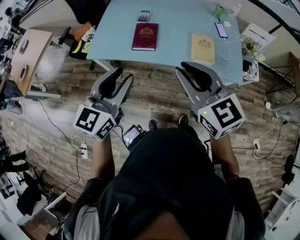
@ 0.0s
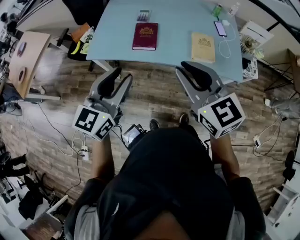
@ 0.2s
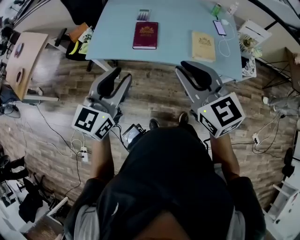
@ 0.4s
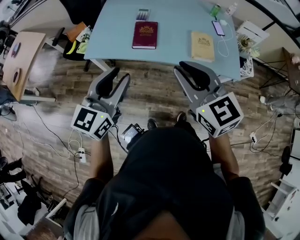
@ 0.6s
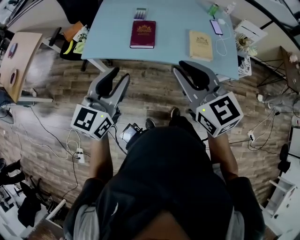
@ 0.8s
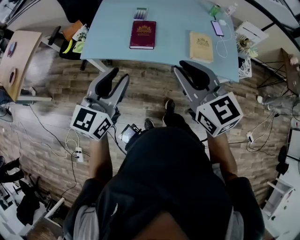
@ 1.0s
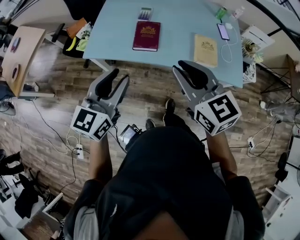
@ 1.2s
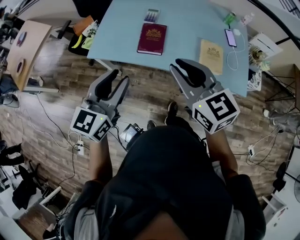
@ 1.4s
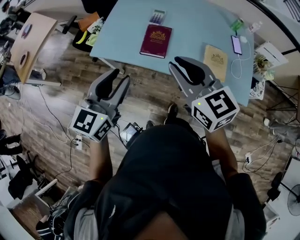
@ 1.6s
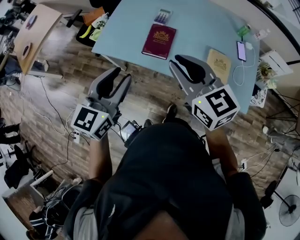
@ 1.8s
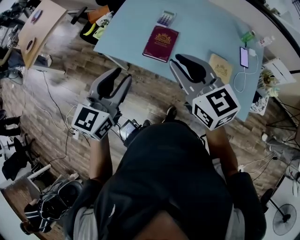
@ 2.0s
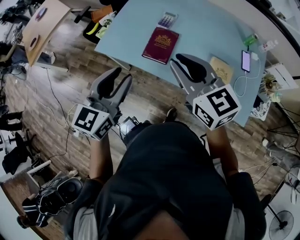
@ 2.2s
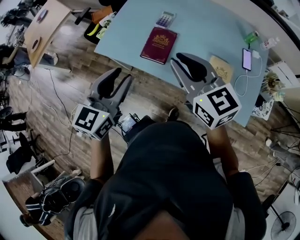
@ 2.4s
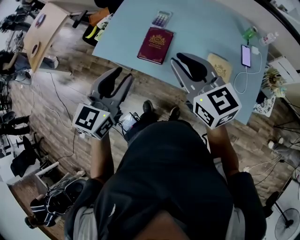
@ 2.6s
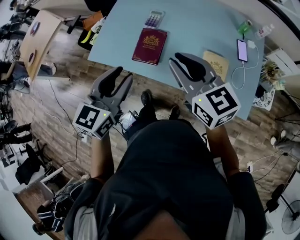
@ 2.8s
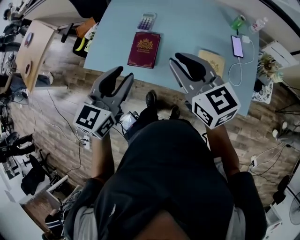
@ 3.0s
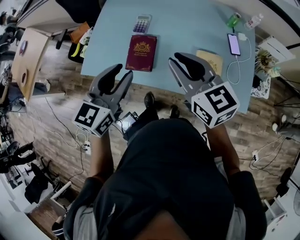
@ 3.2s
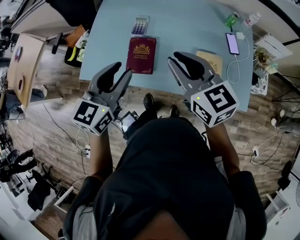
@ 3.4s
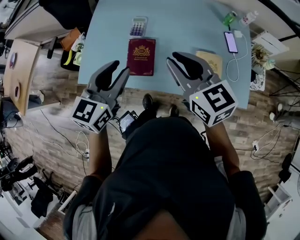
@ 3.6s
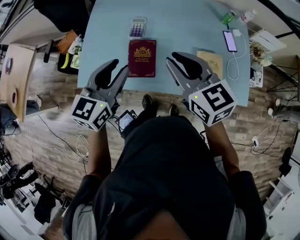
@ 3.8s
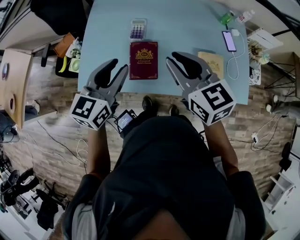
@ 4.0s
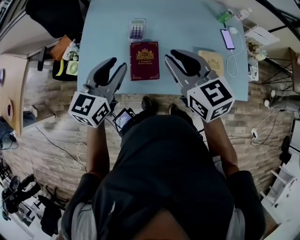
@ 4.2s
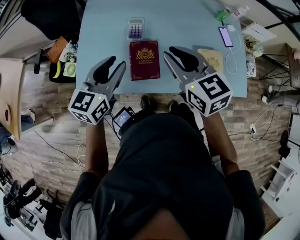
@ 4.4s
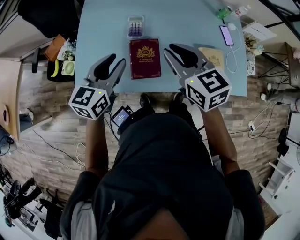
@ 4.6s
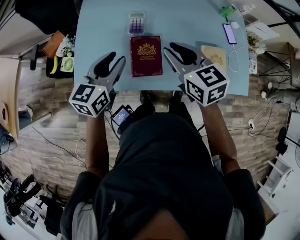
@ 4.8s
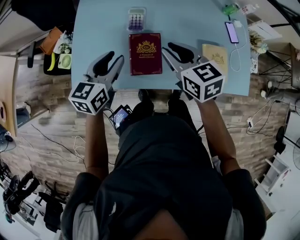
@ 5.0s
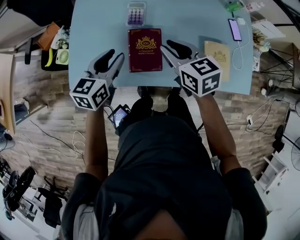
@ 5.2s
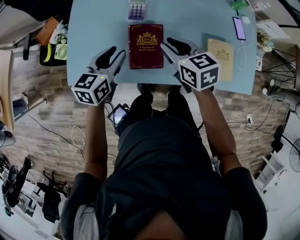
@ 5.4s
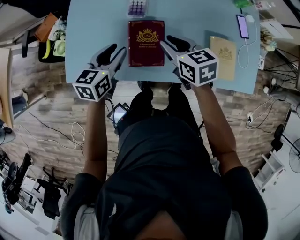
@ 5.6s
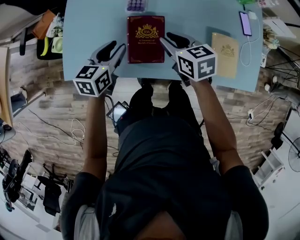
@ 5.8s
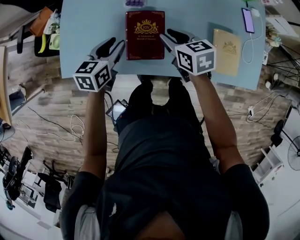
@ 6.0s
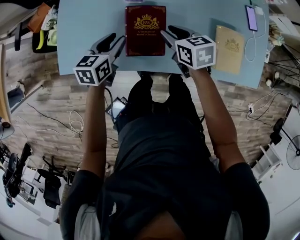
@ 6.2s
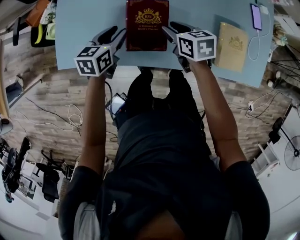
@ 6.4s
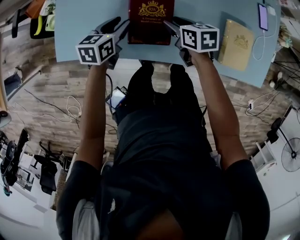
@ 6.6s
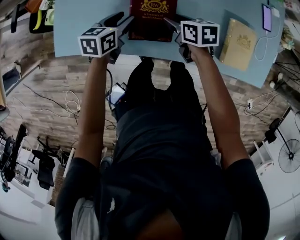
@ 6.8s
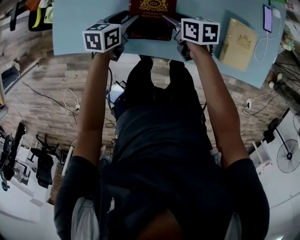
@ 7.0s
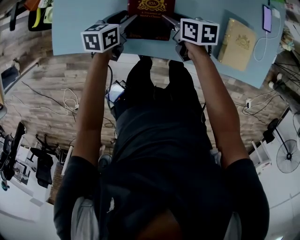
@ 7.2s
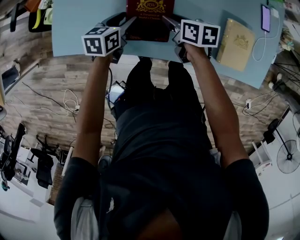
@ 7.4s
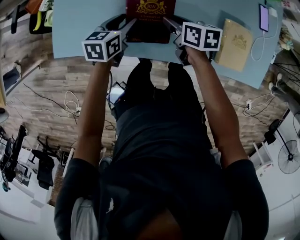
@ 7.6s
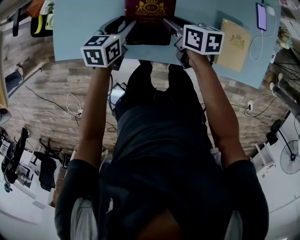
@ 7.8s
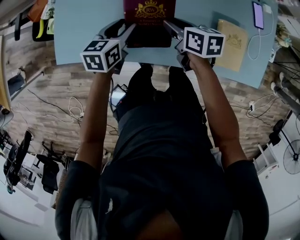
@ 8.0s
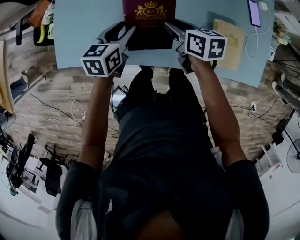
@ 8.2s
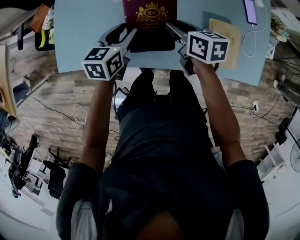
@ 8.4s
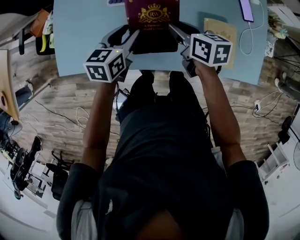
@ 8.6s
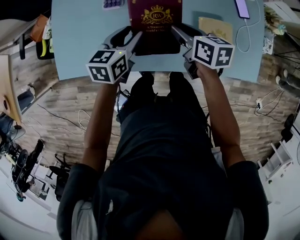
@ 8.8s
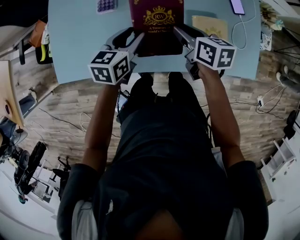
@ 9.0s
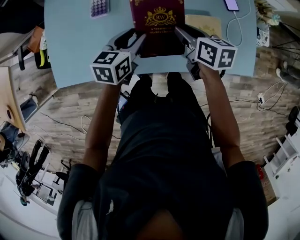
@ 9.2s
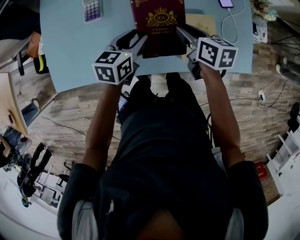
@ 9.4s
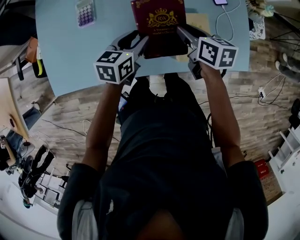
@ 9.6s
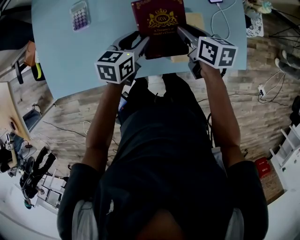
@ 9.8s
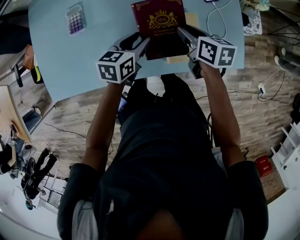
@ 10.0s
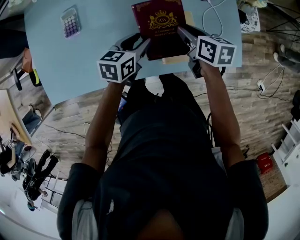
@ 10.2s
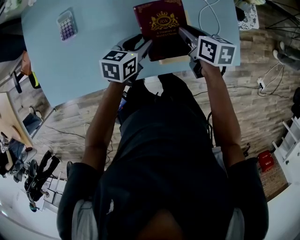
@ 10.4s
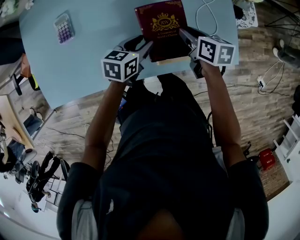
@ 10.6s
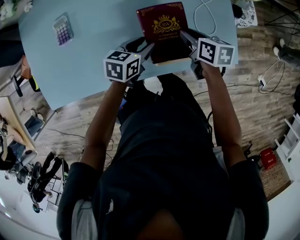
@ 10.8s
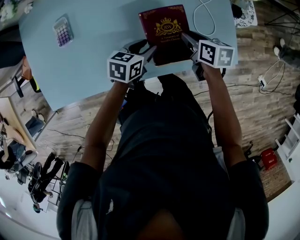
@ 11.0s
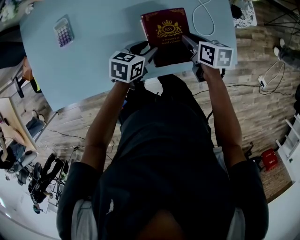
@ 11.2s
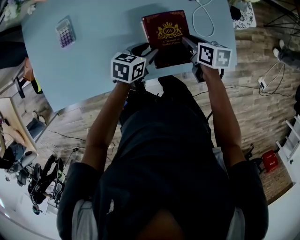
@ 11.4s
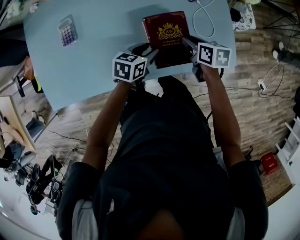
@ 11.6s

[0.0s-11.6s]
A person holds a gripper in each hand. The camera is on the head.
0.0s to 1.4s: The two grippers go roughly 10 cm forward and to the left.
1.4s to 2.8s: Both grippers move to the right and forward, approximately 15 cm.
2.8s to 4.4s: The grippers both shift forward and to the left by about 20 cm. The left gripper changes its angle by some 20 degrees. The right gripper changes its angle by some 20 degrees.
4.4s to 5.8s: The two grippers go roughly 20 cm downward. The left gripper turns by some 20 degrees. The right gripper turns by about 30 degrees.
5.8s to 7.2s: Both grippers travel together downward, some 15 cm. The right gripper turns by roughly 20 degrees.
7.2s to 8.8s: The right gripper heads to the right and upward, covering about 20 cm, while the left gripper goes roughly 20 cm upward and to the right.
8.8s to 10.2s: Both grippers move to the right, roughly 20 cm.
10.2s to 11.6s: The two grippers go approximately 5 cm to the right.

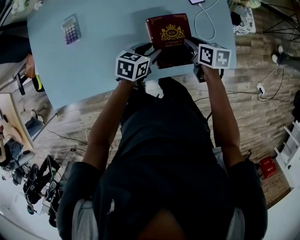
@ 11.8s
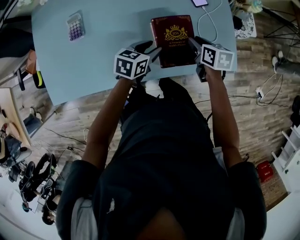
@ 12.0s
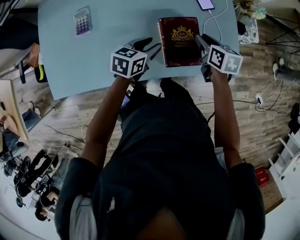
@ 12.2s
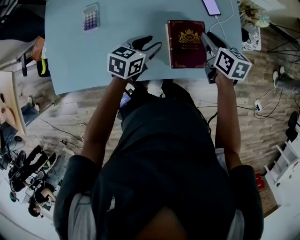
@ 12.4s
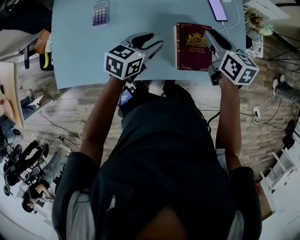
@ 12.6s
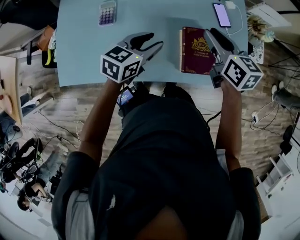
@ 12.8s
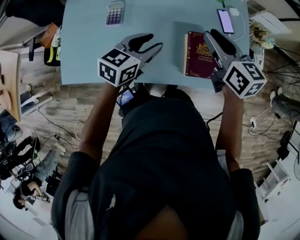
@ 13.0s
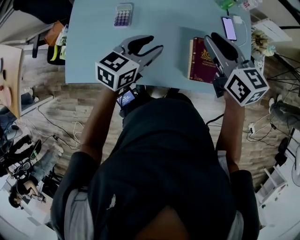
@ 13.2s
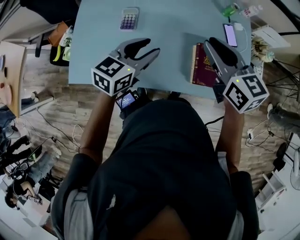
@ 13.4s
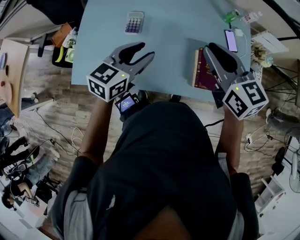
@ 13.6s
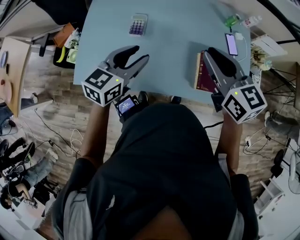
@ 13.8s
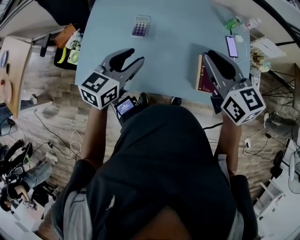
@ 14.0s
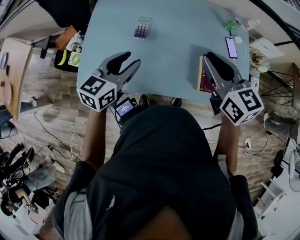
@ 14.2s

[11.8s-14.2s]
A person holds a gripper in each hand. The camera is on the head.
11.8s to 13.0s: The grippers both shift upward and to the left by roughly 25 cm. The right gripper swivels about 40 degrees. The left gripper turns by approximately 20 degrees.
13.0s to 14.2s: The left gripper is displaced to the left by roughly 20 cm. The right gripper heads to the left, upward and backward, covering about 20 cm.

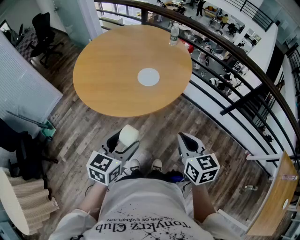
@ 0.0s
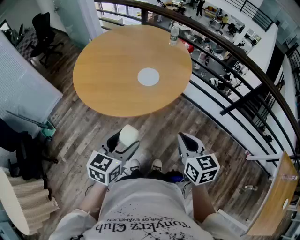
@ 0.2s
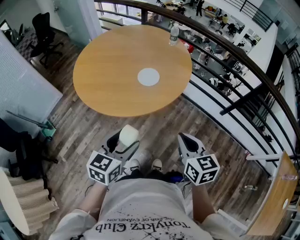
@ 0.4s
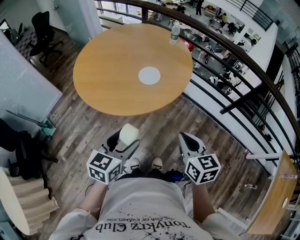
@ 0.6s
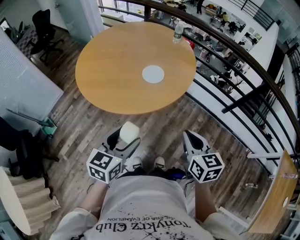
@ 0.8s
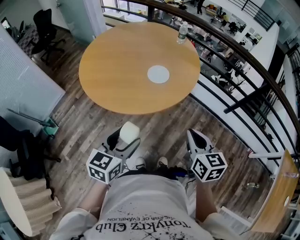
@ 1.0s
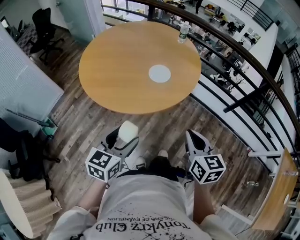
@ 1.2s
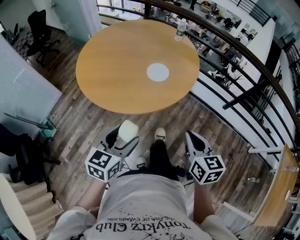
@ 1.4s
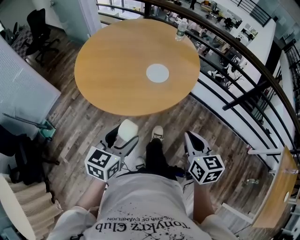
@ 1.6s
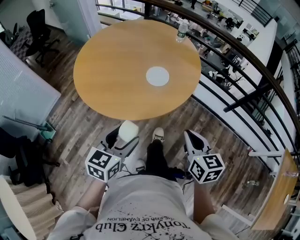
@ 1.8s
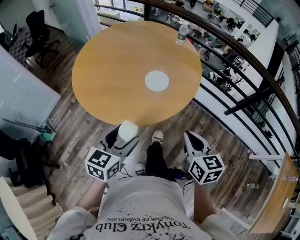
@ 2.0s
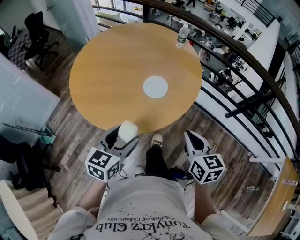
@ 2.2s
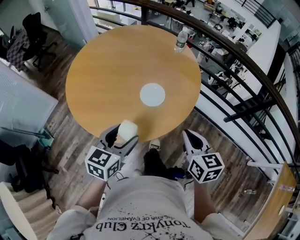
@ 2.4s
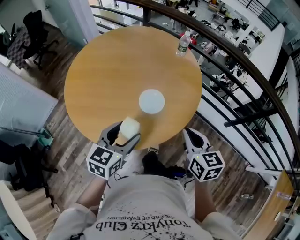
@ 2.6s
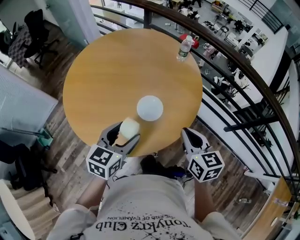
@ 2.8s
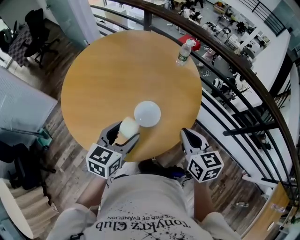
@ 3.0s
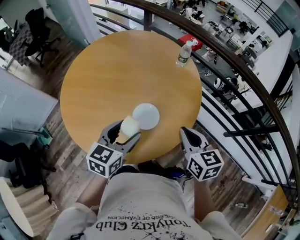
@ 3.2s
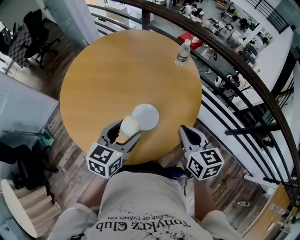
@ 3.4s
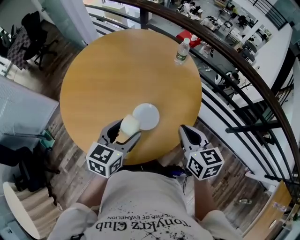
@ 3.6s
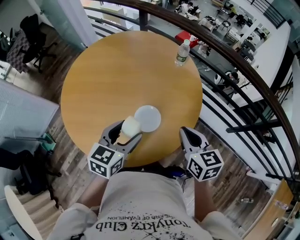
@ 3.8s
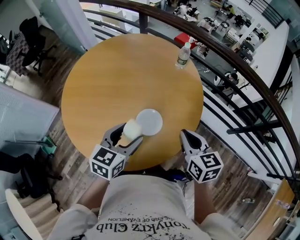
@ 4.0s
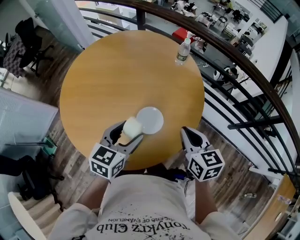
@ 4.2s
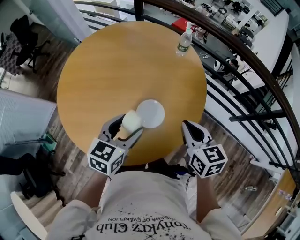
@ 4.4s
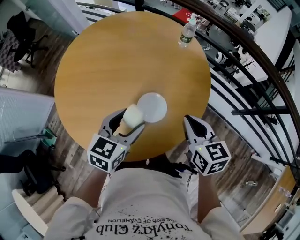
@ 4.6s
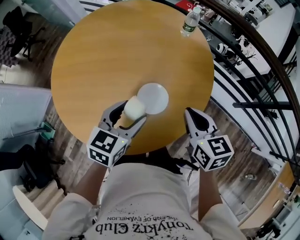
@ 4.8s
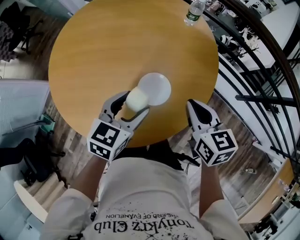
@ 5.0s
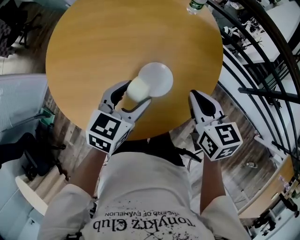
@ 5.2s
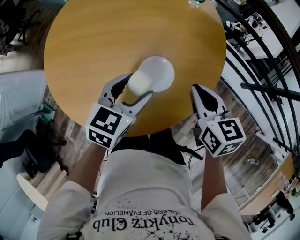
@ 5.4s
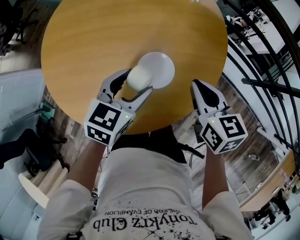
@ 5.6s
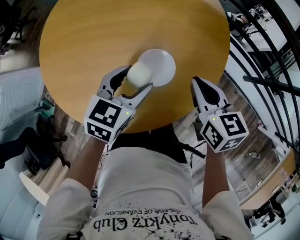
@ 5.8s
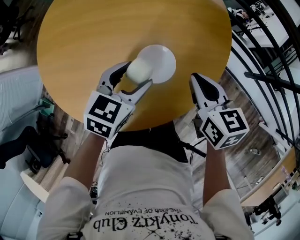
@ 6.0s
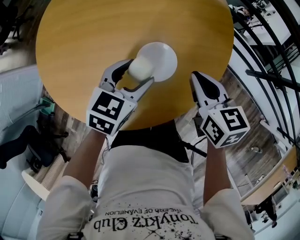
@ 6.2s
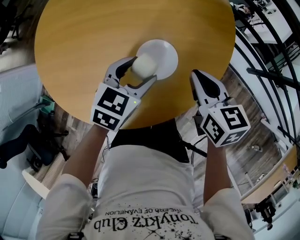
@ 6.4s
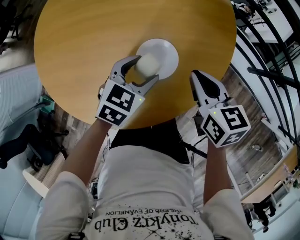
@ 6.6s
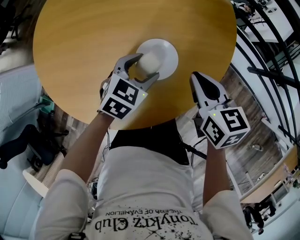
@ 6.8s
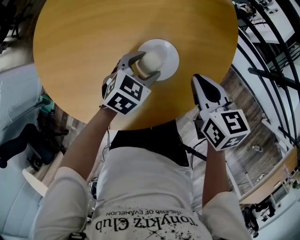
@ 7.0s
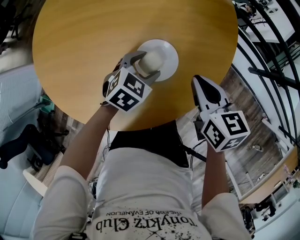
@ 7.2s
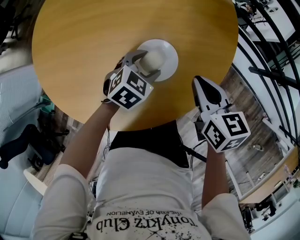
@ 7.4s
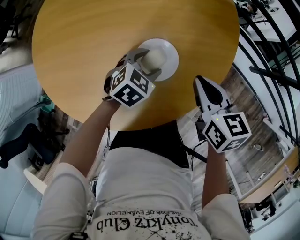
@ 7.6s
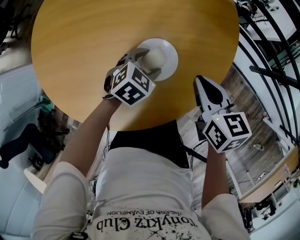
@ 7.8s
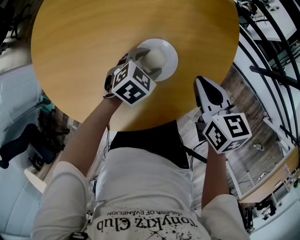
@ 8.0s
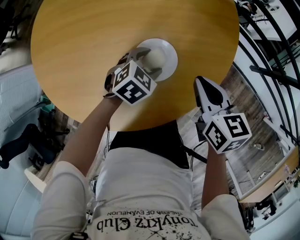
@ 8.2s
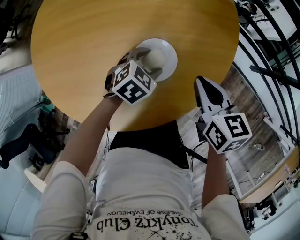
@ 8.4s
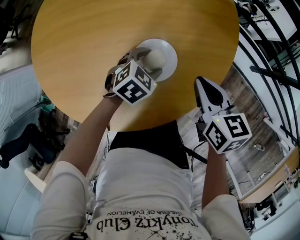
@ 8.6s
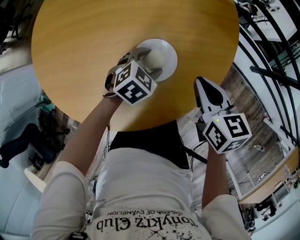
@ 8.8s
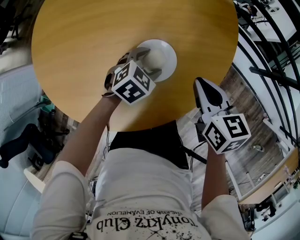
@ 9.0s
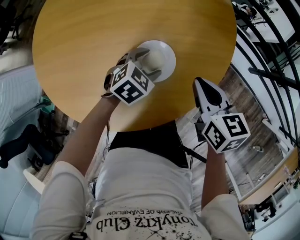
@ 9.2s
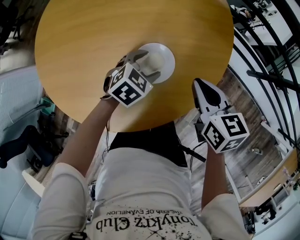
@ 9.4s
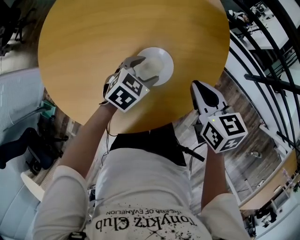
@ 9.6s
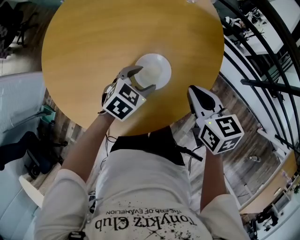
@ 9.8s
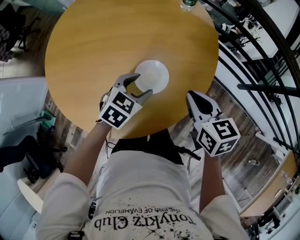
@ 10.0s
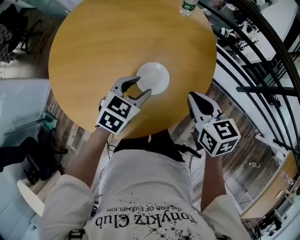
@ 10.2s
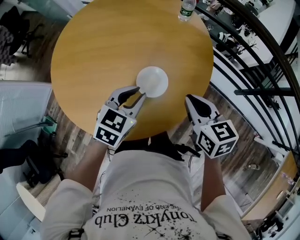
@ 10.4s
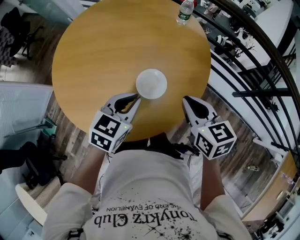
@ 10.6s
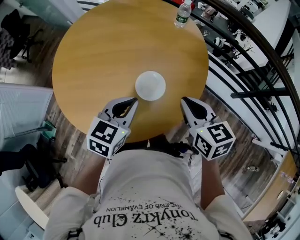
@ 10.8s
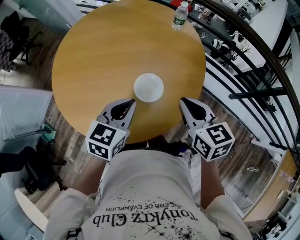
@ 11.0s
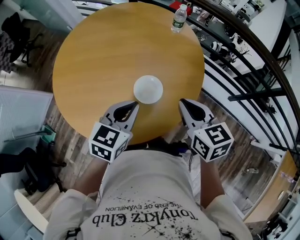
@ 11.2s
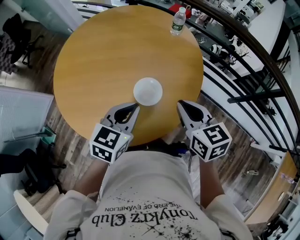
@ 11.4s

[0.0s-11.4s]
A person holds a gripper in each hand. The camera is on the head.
0.0s to 1.4s: The left gripper travels to the left by approximately 10 cm. The right gripper is displaced to the left by approximately 5 cm.
1.4s to 2.8s: Both grippers move forward, roughly 30 cm.
2.8s to 4.2s: Both grippers travel together forward, roughly 10 cm.
4.2s to 5.6s: The left gripper moves downward, roughly 5 cm. Meanwhile the right gripper is displaced to the left by approximately 5 cm.
5.6s to 7.2s: The left gripper travels downward by roughly 15 cm, and turns by some 20 degrees. Meanwhile the right gripper is displaced downward by about 5 cm.
7.2s to 8.6s: The grippers move only a little.
8.6s to 10.0s: The left gripper heads upward and backward, covering approximately 15 cm. Meanwhile the right gripper goes approximately 10 cm upward.
10.0s to 11.4s: The left gripper travels upward and backward by about 15 cm, turns by some 20 degrees, and closes; the right gripper goes roughly 10 cm upward.
